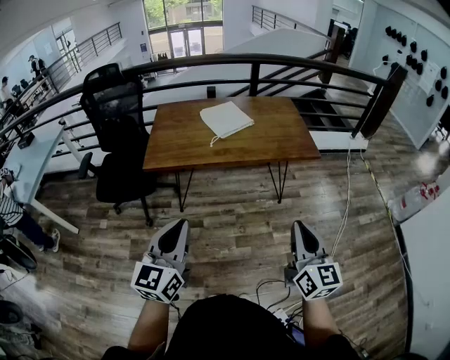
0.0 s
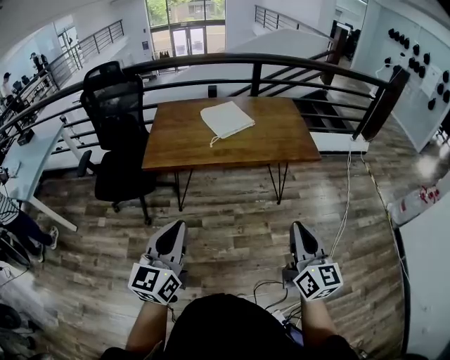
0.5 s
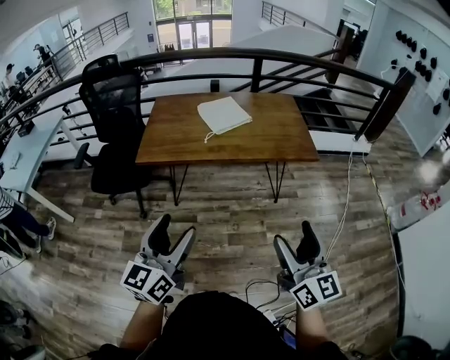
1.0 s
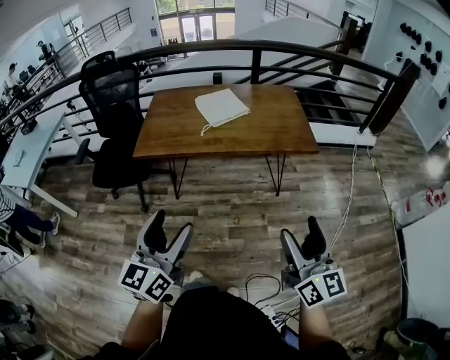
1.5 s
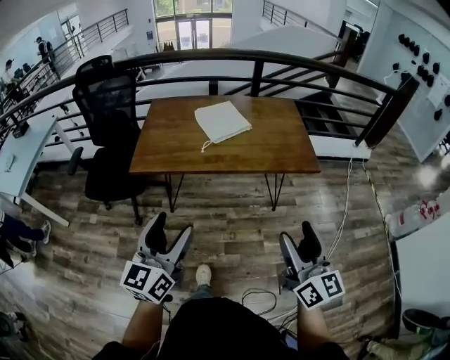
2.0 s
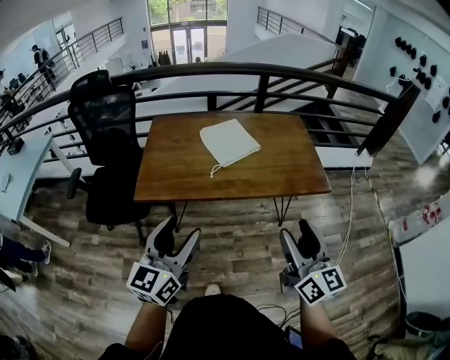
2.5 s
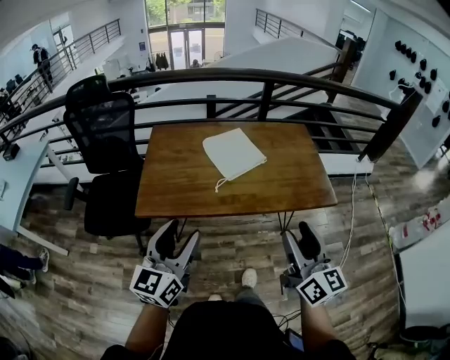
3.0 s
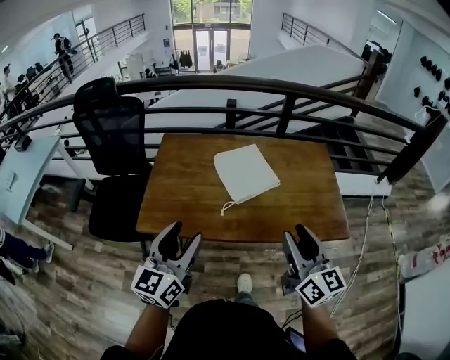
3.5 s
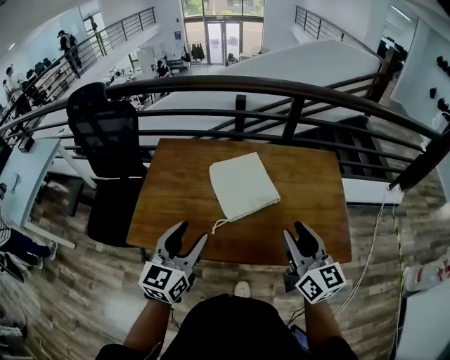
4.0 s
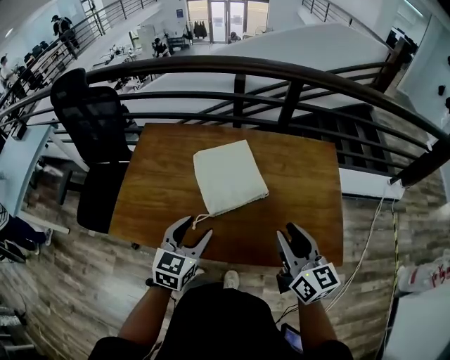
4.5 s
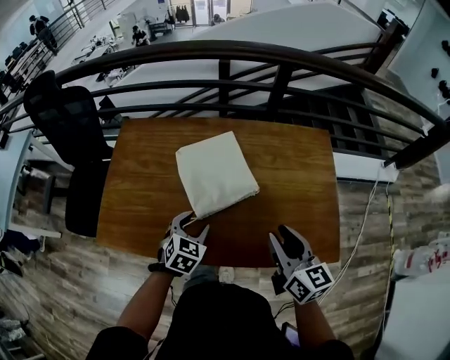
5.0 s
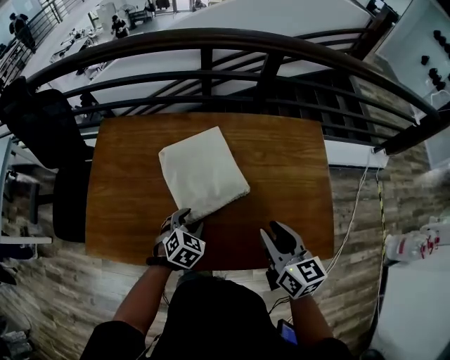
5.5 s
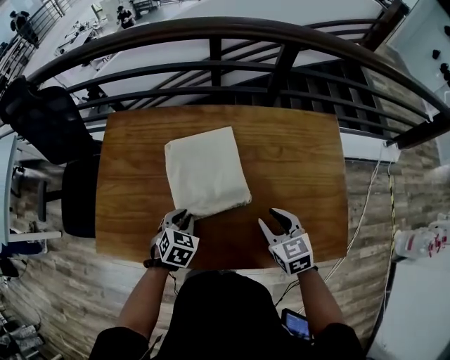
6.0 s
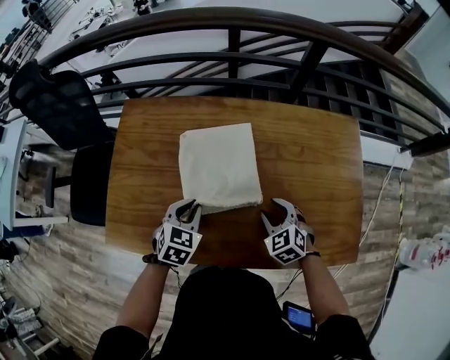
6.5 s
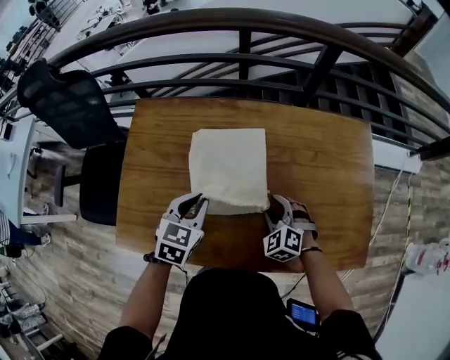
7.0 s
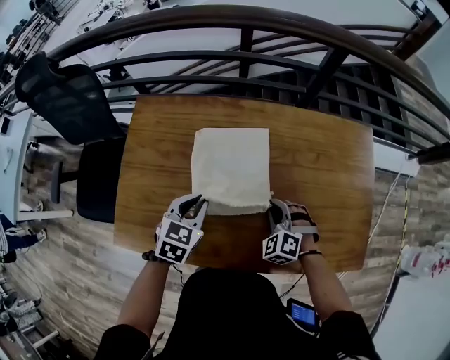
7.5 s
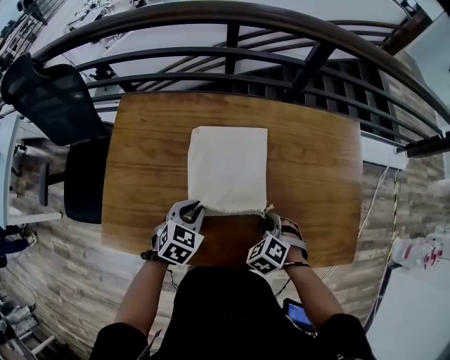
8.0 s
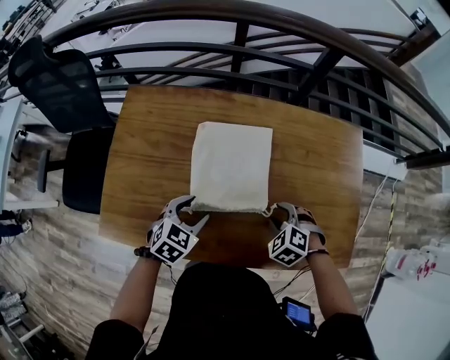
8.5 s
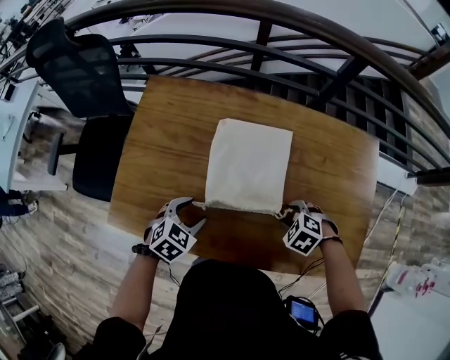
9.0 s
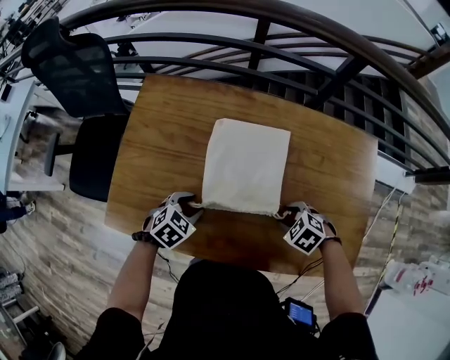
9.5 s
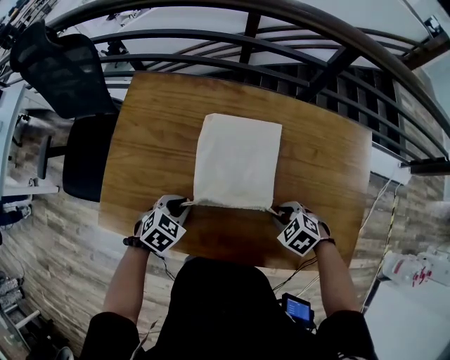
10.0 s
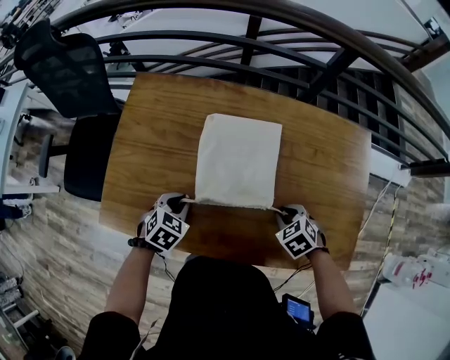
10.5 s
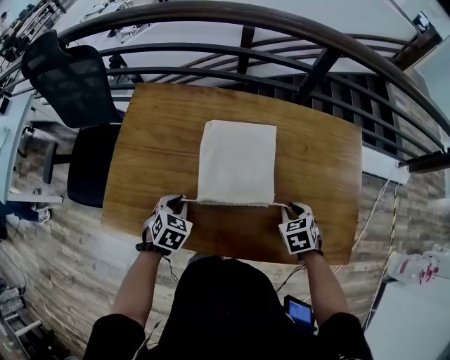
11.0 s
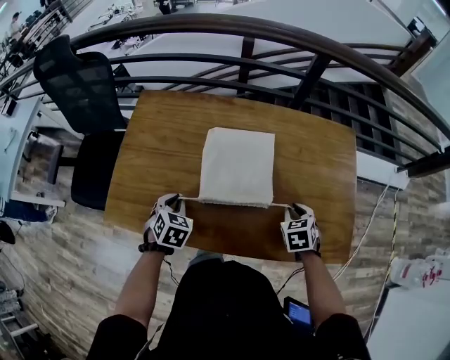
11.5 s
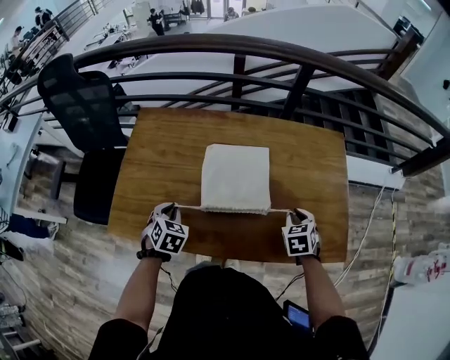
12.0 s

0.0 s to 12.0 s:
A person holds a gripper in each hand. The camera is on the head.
0.0 to 2.0 s: Both grippers move forward, roughly 10 cm. The right gripper opens. Meanwhile the left gripper opens.
2.0 to 4.0 s: The pair of grippers is taken forward, some 40 cm. The right gripper closes.
4.0 to 6.0 s: The grippers both shift downward and forward by roughly 30 cm. The right gripper points its fingers roughly 40 degrees further downward. Meanwhile the left gripper tips its fingers downward by about 50 degrees, and closes.
6.0 to 8.0 s: The right gripper goes roughly 10 cm downward, and swivels about 50 degrees. Meanwhile the left gripper moves approximately 10 cm upward and comes back.
8.0 to 10.0 s: The left gripper moves some 10 cm, and opens, then closes once more. Meanwhile the right gripper turns by approximately 20 degrees.
10.0 to 12.0 s: The right gripper is displaced to the right and upward by approximately 10 cm, and changes its angle by roughly 50 degrees, while the left gripper moves upward, approximately 5 cm, and changes its angle by approximately 30 degrees.

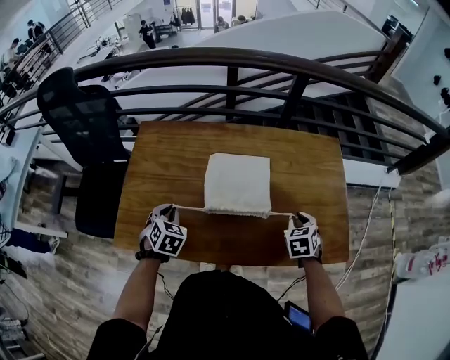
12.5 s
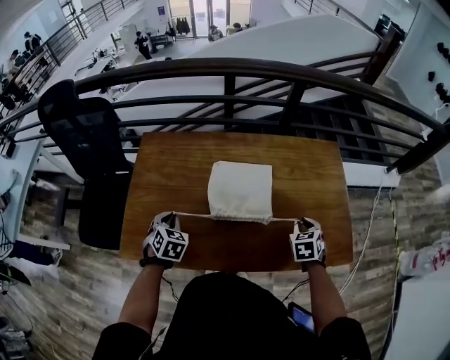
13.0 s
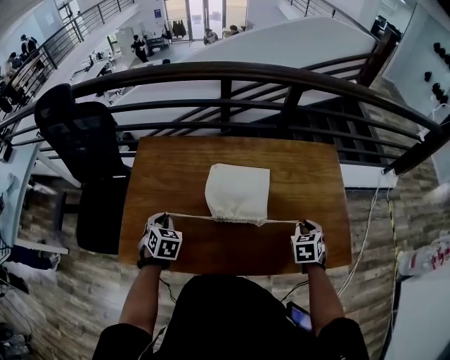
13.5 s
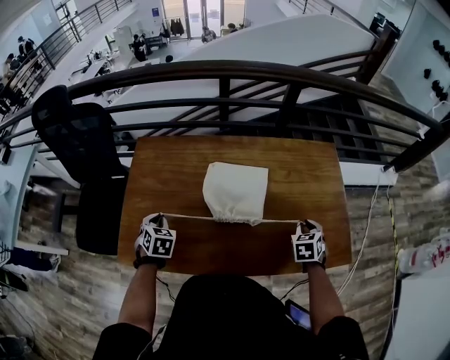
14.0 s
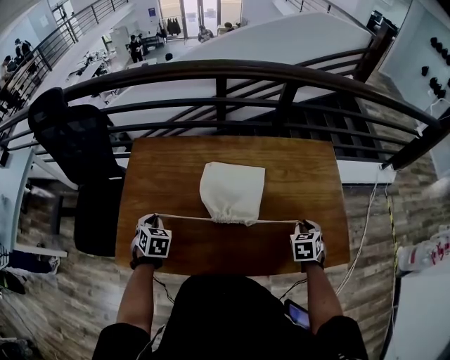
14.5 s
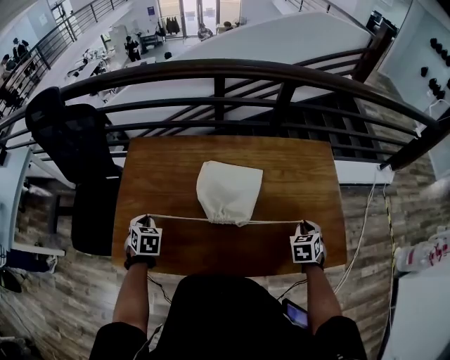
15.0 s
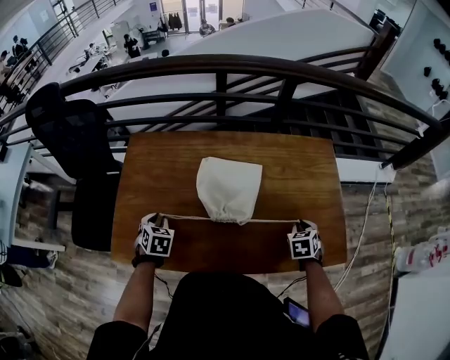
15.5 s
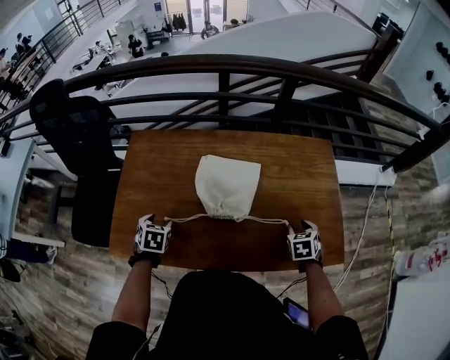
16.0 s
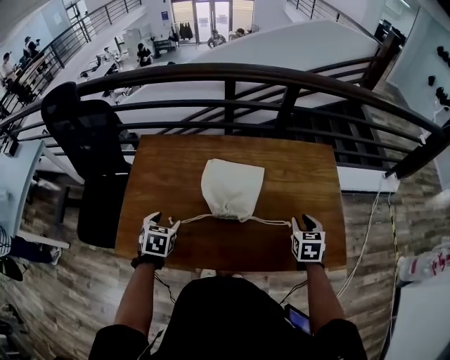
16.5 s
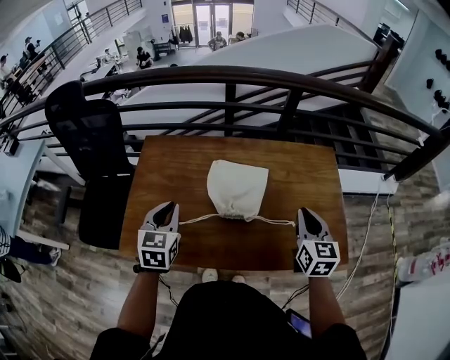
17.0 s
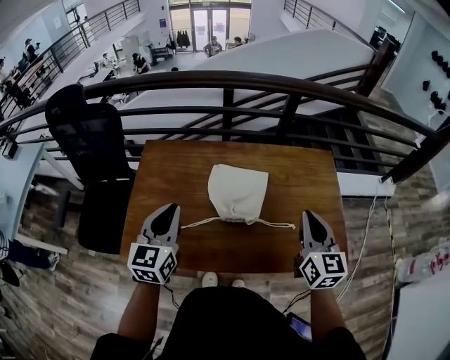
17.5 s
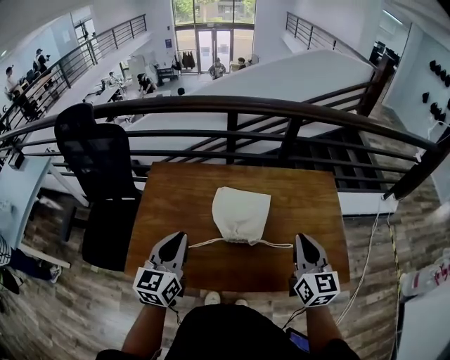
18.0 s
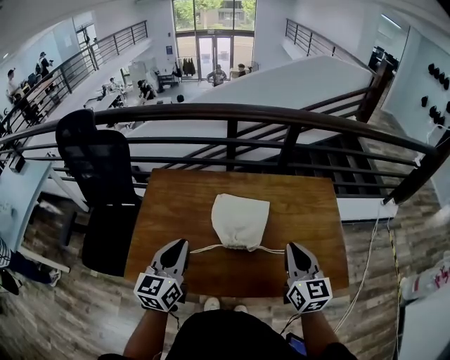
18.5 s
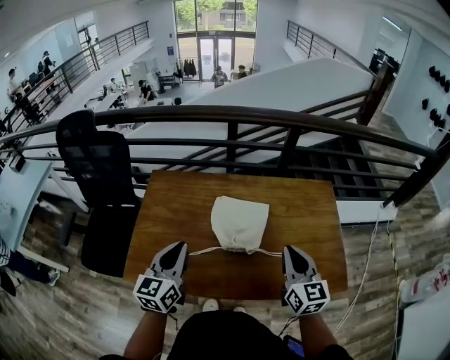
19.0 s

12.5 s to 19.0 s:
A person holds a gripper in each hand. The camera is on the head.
12.5 to 14.5 s: The left gripper goes some 5 cm to the left.
14.5 to 17.0 s: The right gripper moves upward and to the left, some 20 cm, and tips its fingers upward by approximately 30 degrees. The left gripper heads upward and to the right, covering approximately 15 cm, rotates about 30 degrees, and opens and closes again.
17.0 to 19.0 s: The left gripper goes about 5 cm upward, and rotates some 30 degrees. The right gripper travels to the left by some 5 cm.

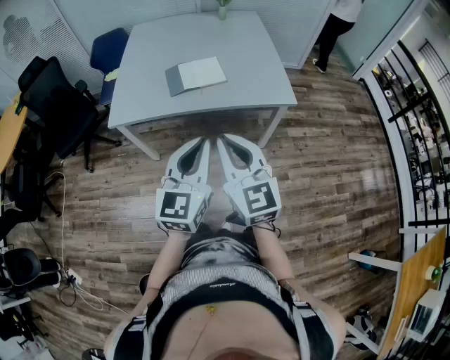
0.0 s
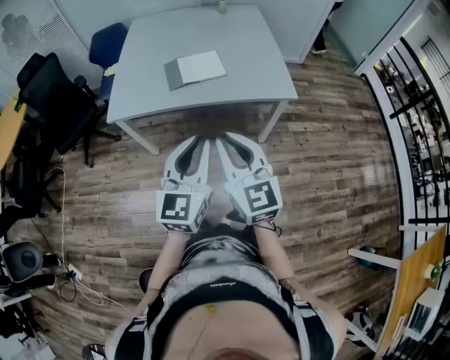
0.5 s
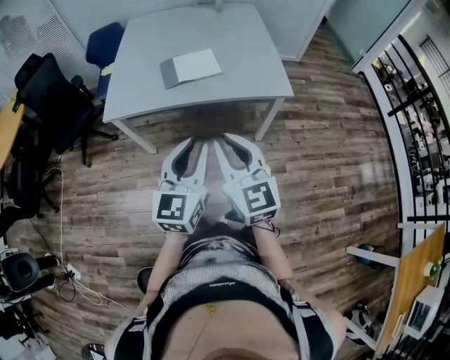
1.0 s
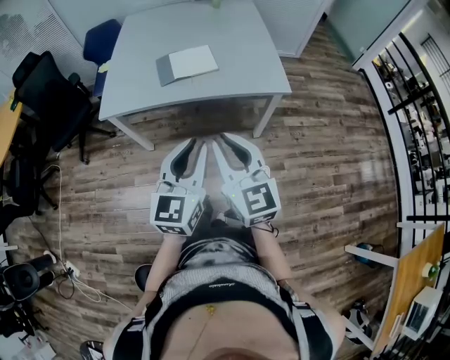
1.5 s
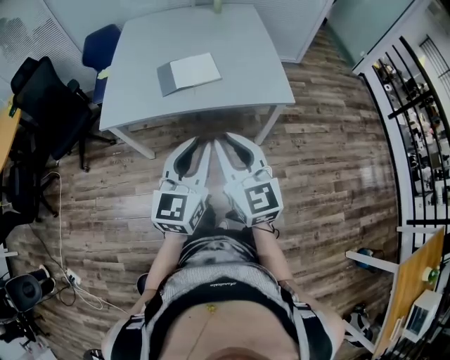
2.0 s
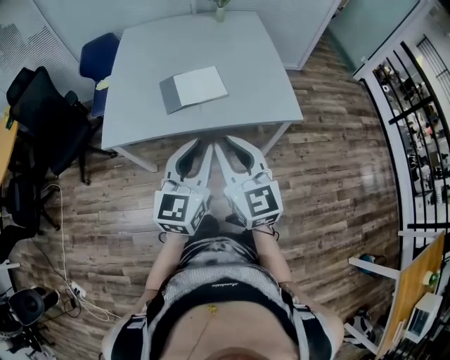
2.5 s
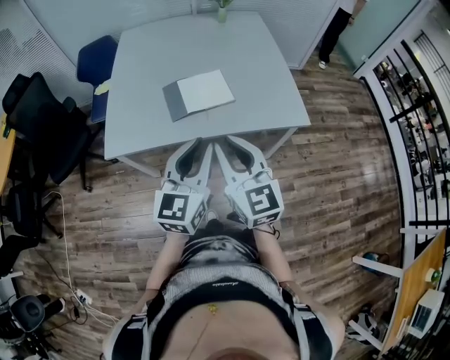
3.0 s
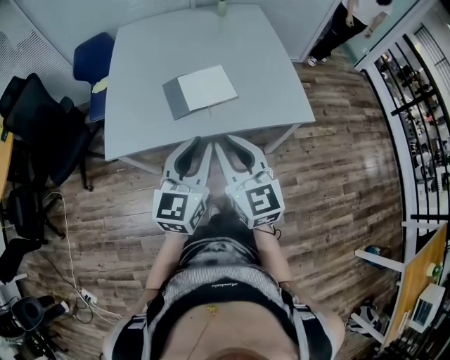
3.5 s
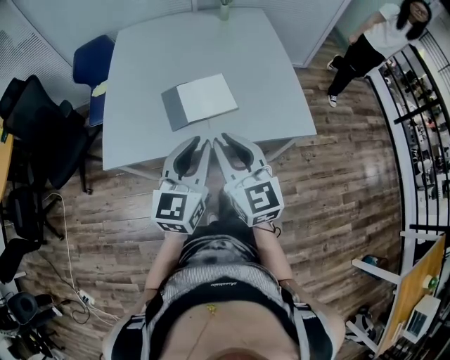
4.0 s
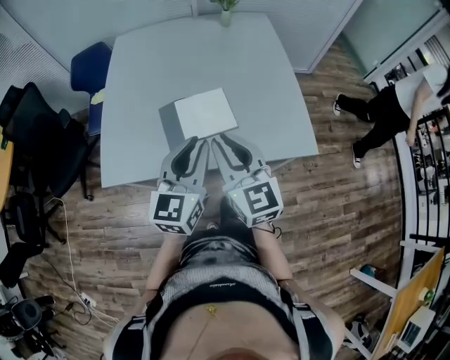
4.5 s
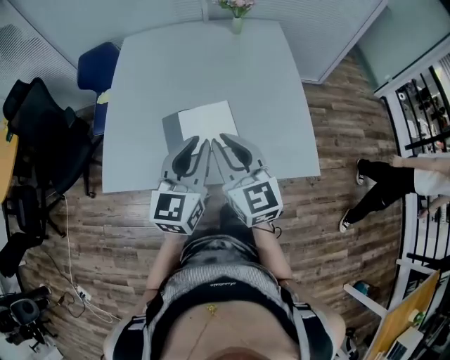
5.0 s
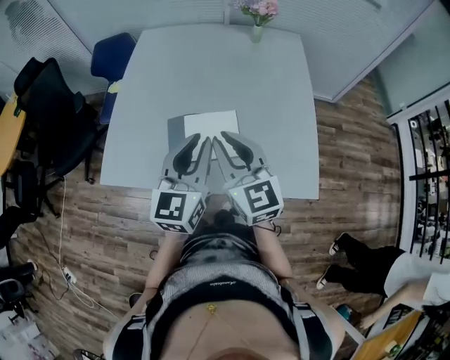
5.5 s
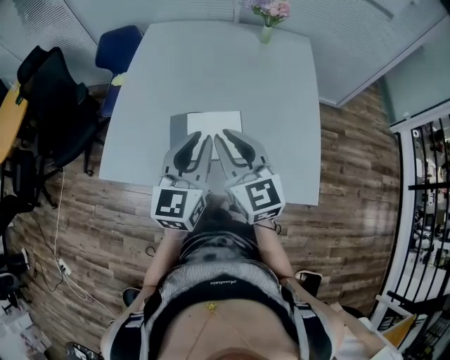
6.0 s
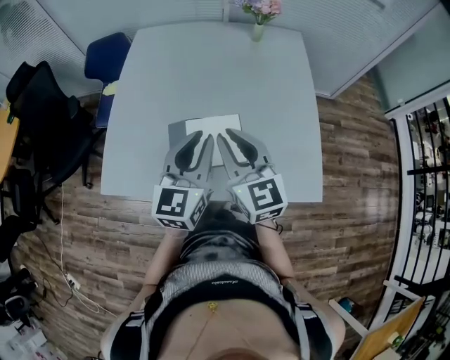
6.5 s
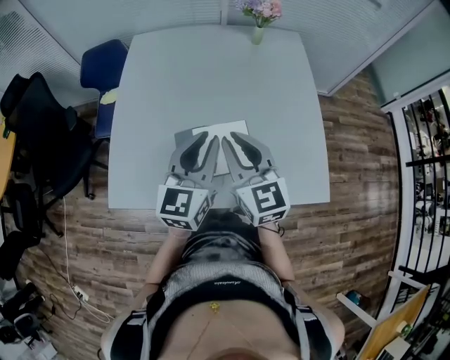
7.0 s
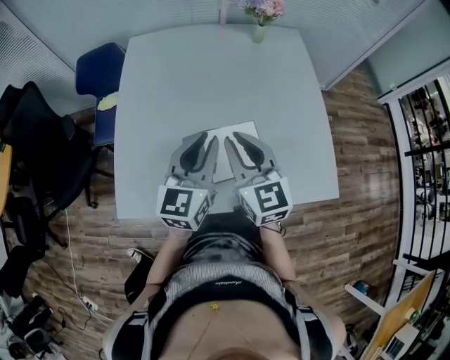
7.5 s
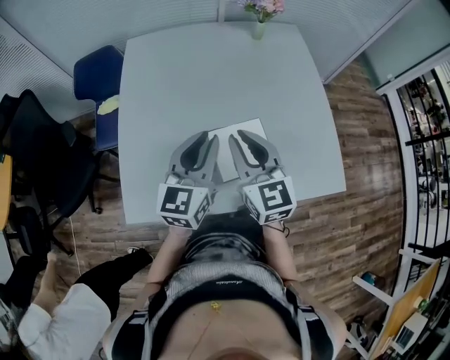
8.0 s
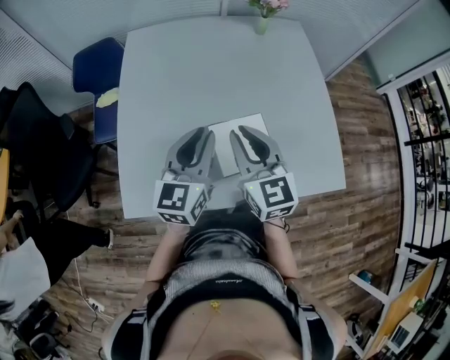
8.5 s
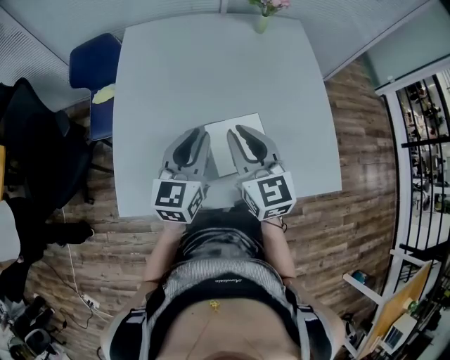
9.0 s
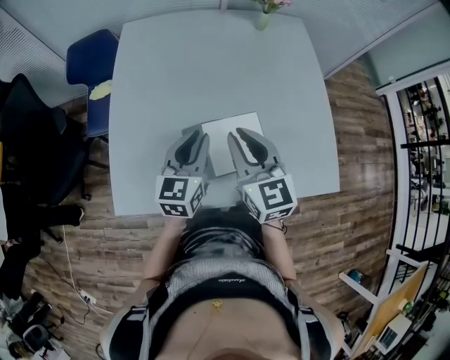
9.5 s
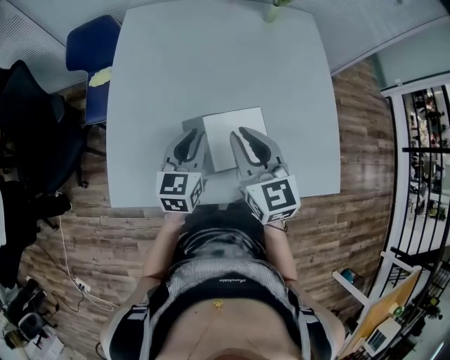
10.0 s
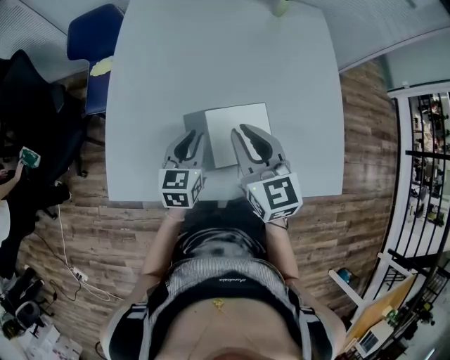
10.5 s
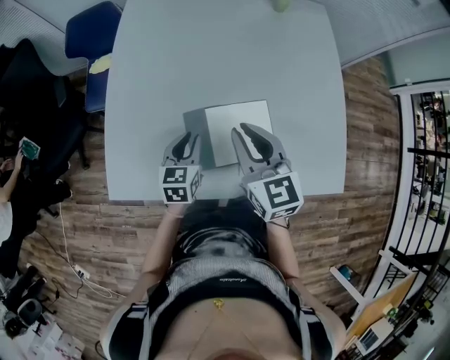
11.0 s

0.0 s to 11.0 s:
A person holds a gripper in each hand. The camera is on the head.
0.0 to 2.0 s: The right gripper shifts by about 5 cm. The left gripper ends up approximately 5 cm from where it was.
2.0 to 3.5 s: Both grippers travel together forward and to the left, approximately 20 cm.
3.5 to 5.5 s: The grippers both shift forward by roughly 25 cm.
5.5 to 7.5 s: Both grippers move forward and to the left, about 15 cm.
7.5 to 9.0 s: The left gripper moves approximately 5 cm.
9.0 to 11.0 s: The left gripper shifts about 20 cm downward, and swivels some 30 degrees. The right gripper is displaced downward by about 5 cm.
